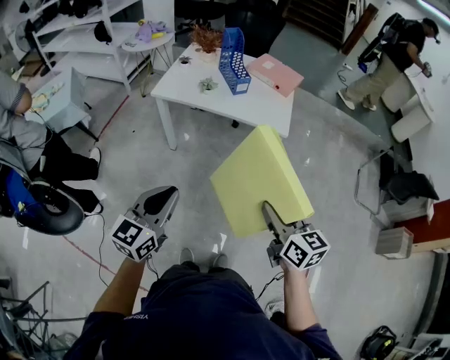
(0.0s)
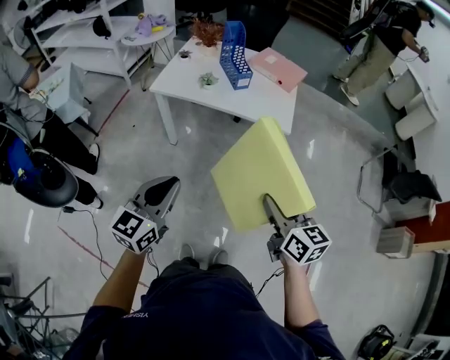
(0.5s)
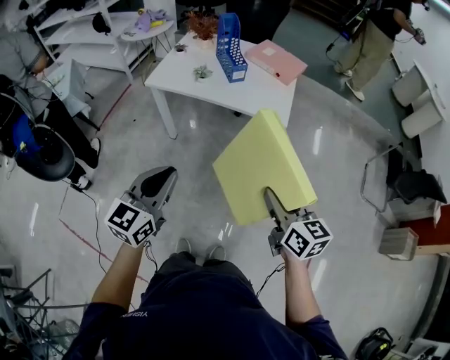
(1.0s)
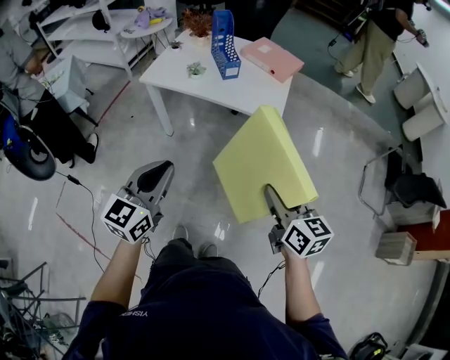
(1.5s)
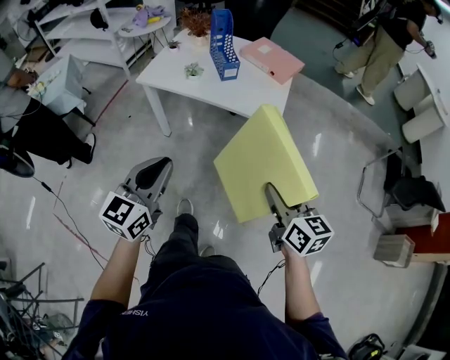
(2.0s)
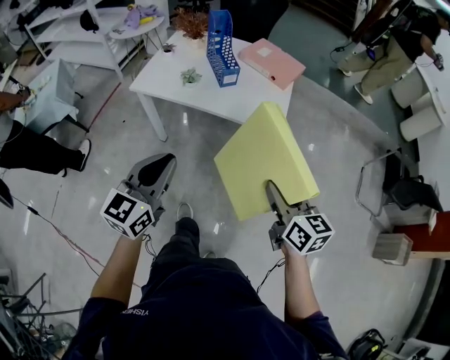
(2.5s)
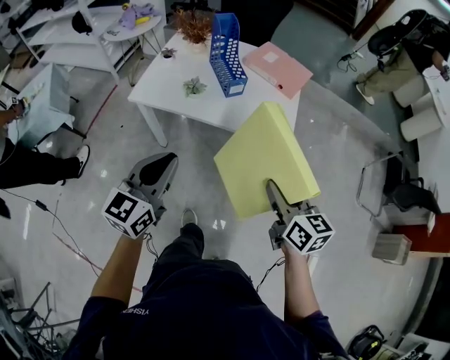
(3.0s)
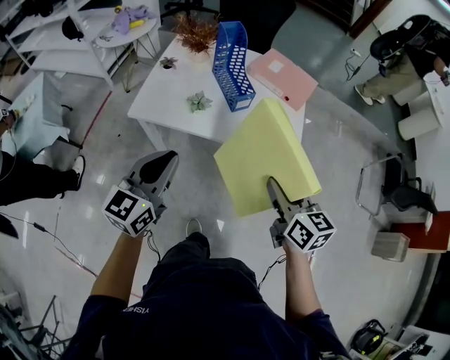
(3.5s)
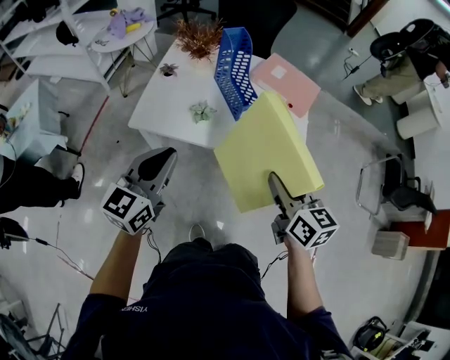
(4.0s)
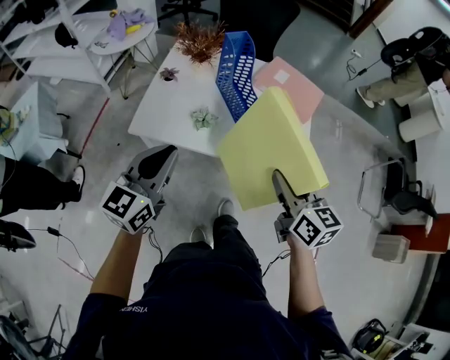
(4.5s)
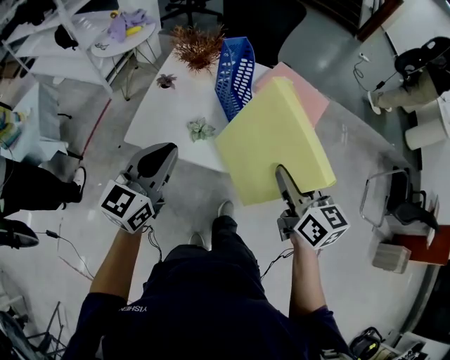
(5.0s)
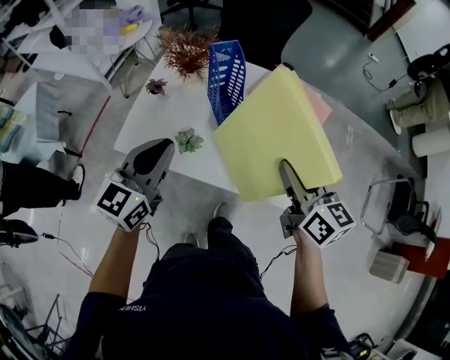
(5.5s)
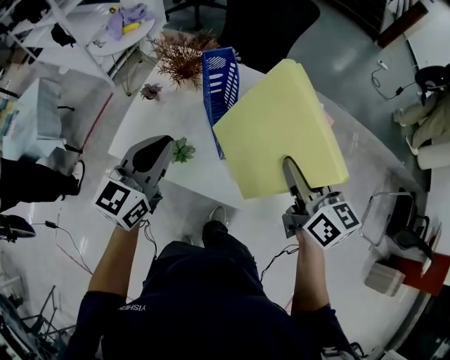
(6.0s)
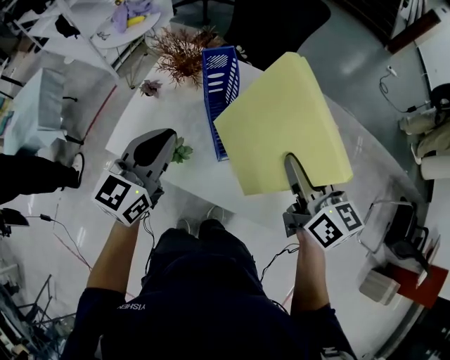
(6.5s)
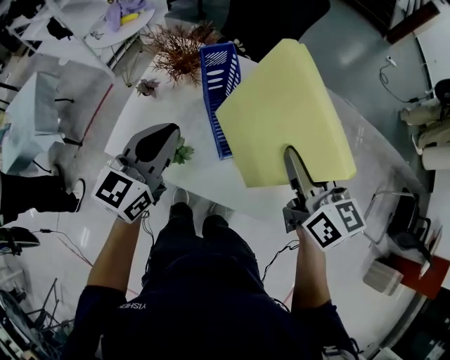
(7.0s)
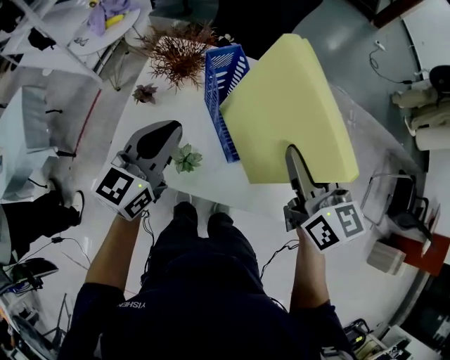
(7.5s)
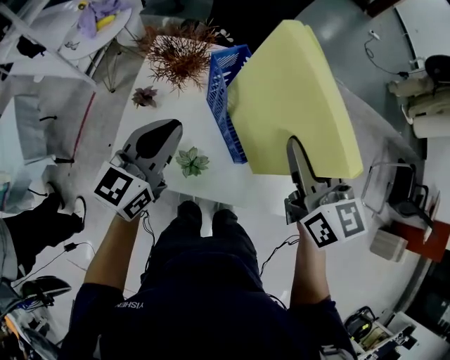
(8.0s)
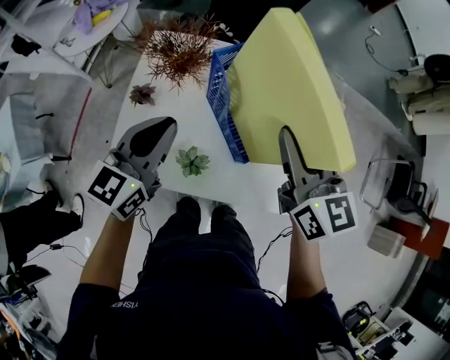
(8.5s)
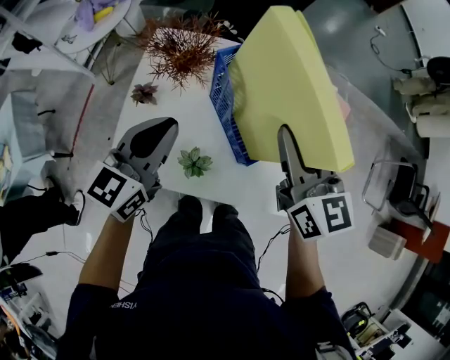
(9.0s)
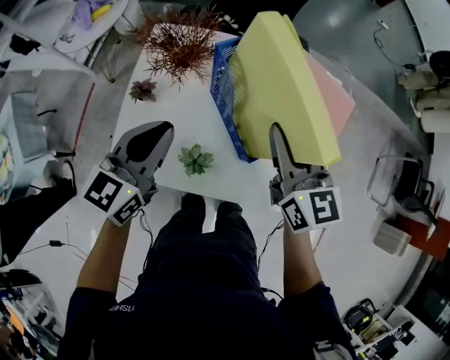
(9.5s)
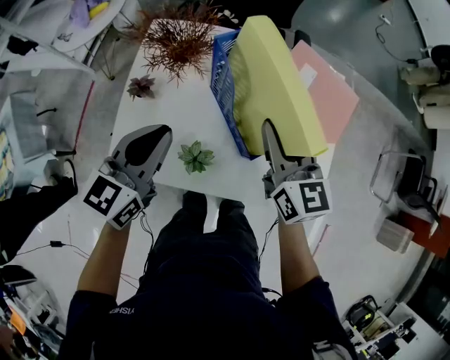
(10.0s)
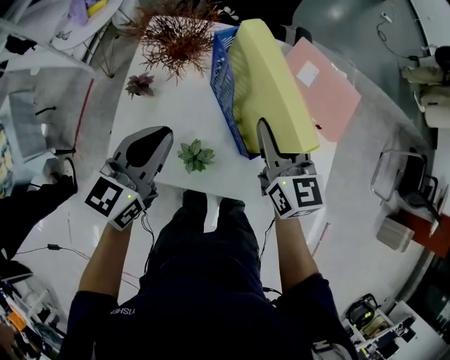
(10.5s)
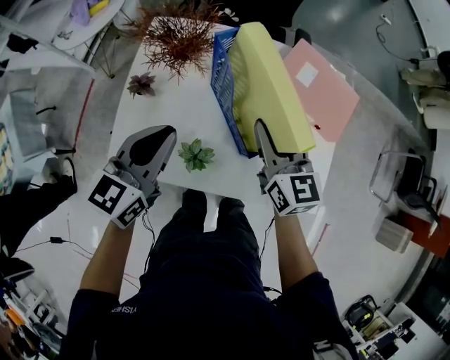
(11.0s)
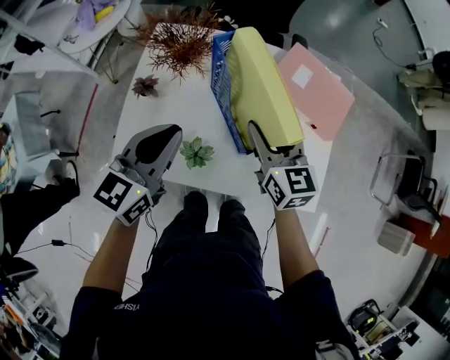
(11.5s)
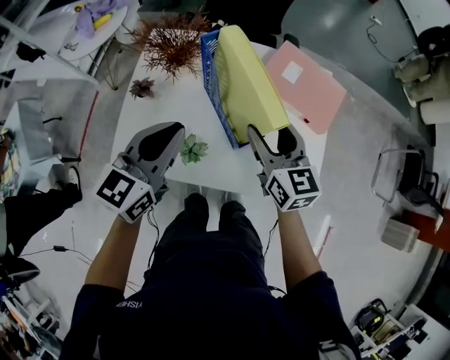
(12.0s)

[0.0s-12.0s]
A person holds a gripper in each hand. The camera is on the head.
0.0s to 2.0s: The two grippers go roughly 15 cm to the right and forward.
2.0s to 4.0s: Both grippers travel together forward and to the left, about 35 cm.
4.0s to 6.0s: Both grippers move forward, roughly 25 cm.
6.0s to 8.0s: The right gripper goes approximately 10 cm to the left and forward. Meanwhile the left gripper shifts approximately 10 cm forward.
8.0s to 10.0s: The right gripper travels downward by roughly 10 cm, while the left gripper shifts by approximately 5 cm.
10.0s to 12.0s: The right gripper opens up, while the left gripper travels to the right by approximately 5 cm.

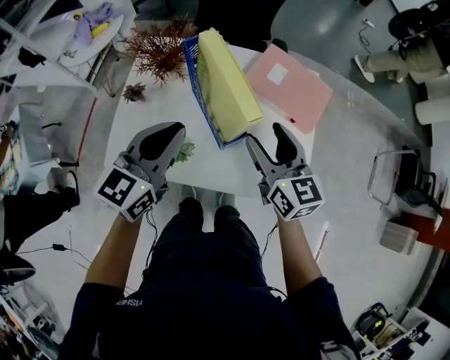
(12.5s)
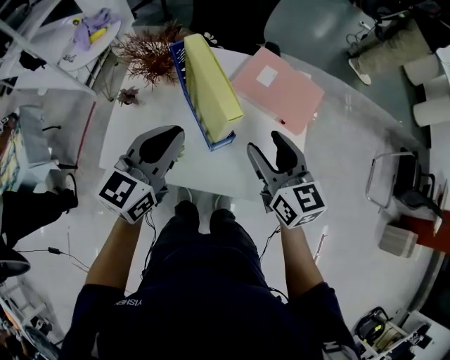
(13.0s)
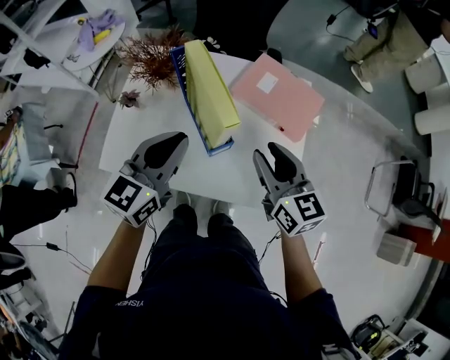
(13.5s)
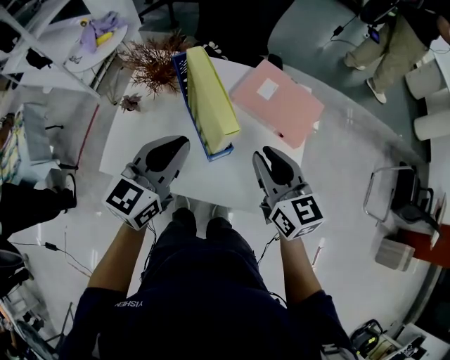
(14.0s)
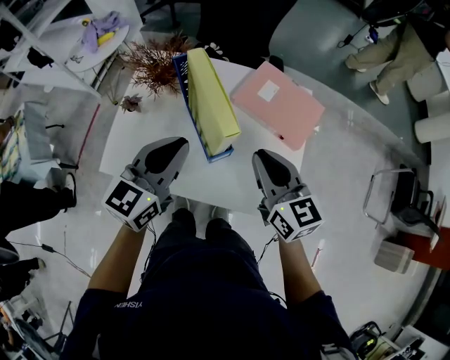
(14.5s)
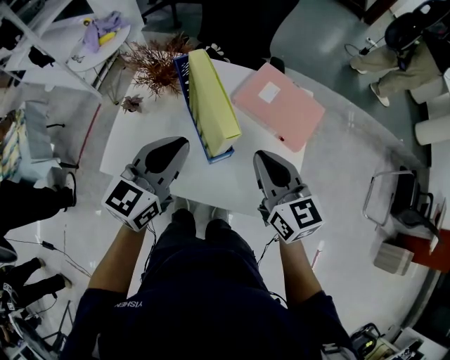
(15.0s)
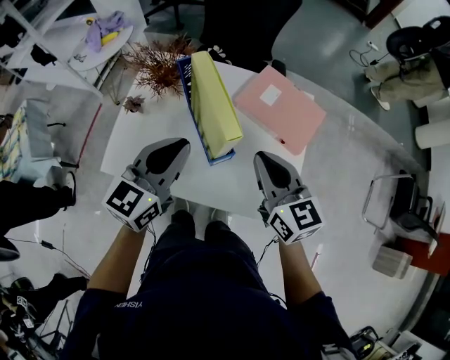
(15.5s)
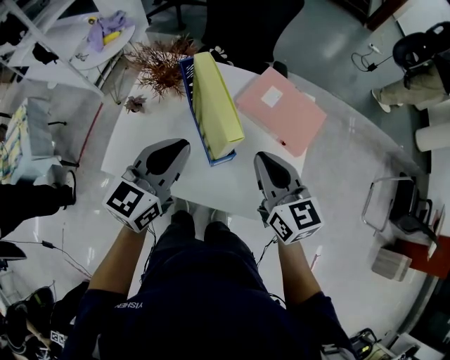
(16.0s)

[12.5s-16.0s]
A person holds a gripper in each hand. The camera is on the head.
12.5s to 14.5s: The right gripper closes.
14.5s to 16.0s: Both grippers stay about where they are.

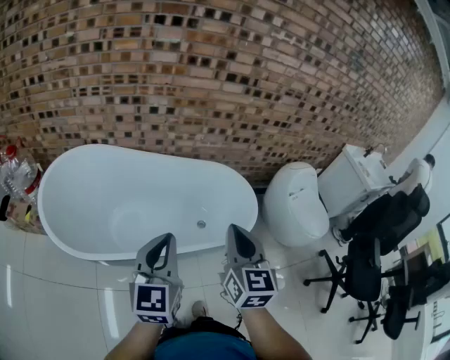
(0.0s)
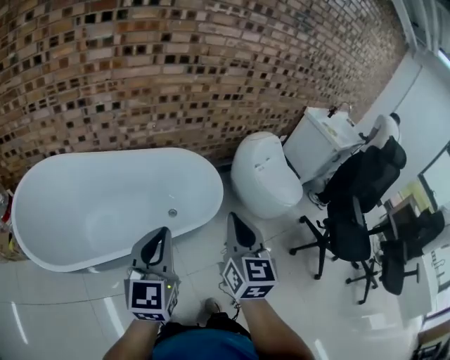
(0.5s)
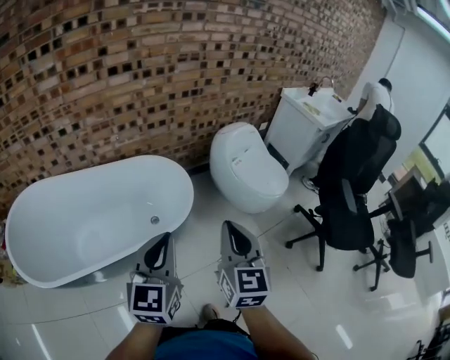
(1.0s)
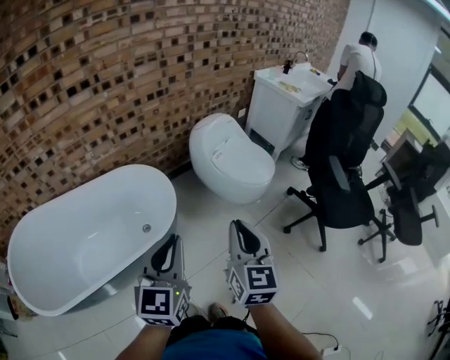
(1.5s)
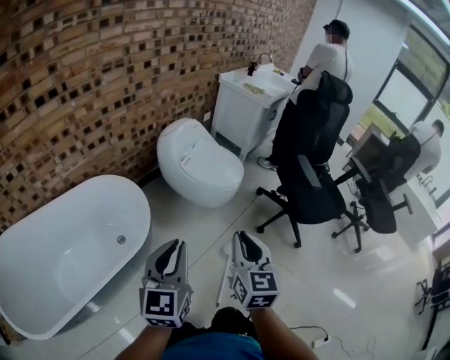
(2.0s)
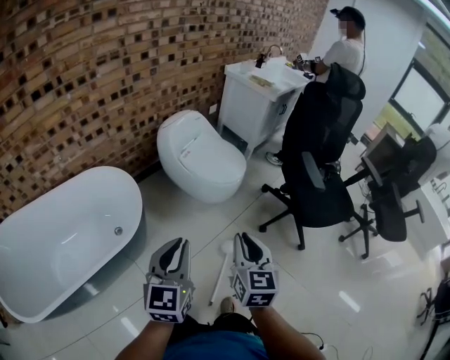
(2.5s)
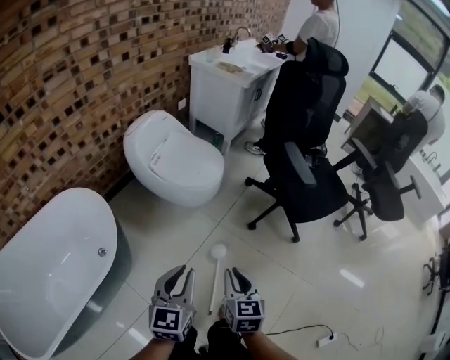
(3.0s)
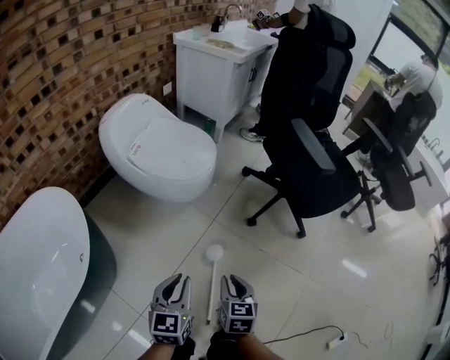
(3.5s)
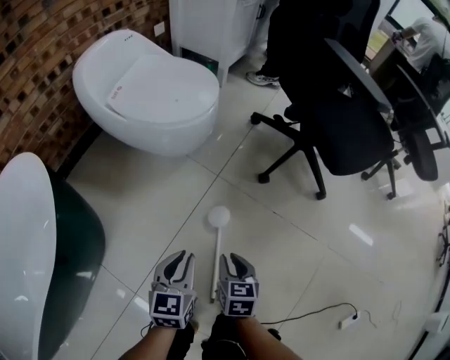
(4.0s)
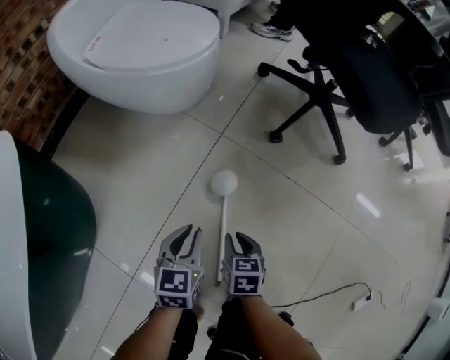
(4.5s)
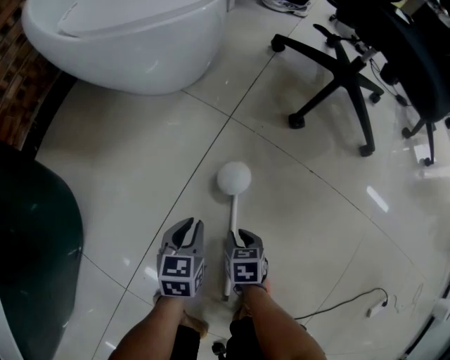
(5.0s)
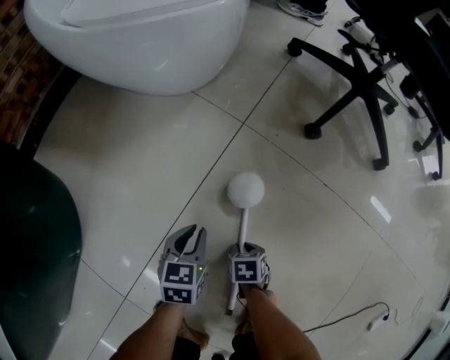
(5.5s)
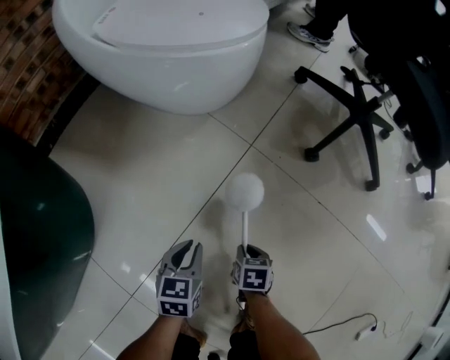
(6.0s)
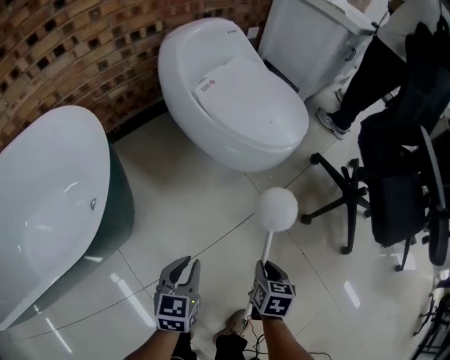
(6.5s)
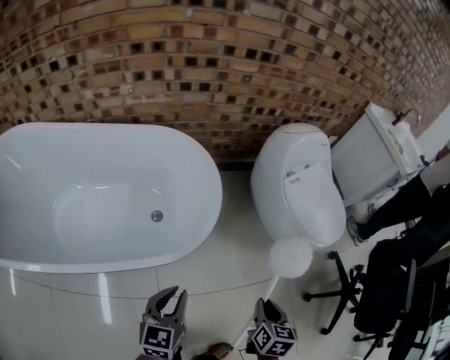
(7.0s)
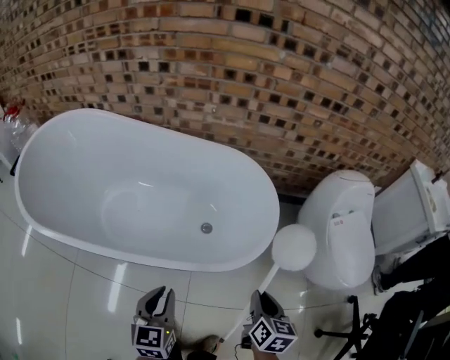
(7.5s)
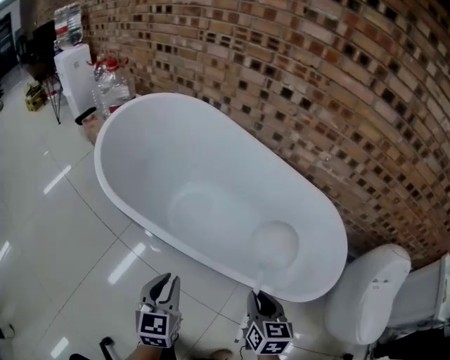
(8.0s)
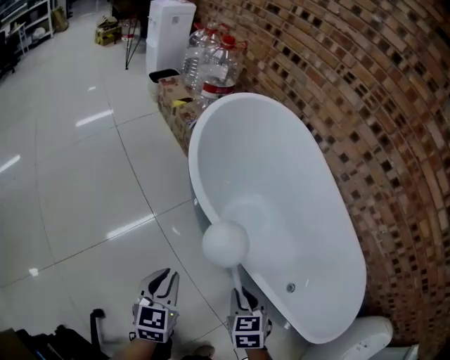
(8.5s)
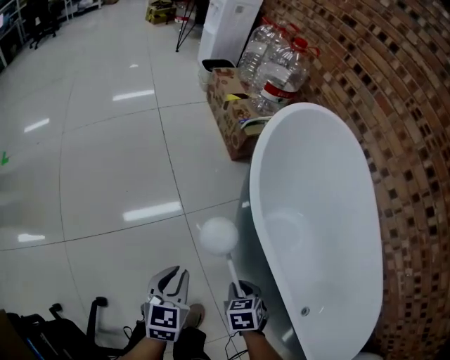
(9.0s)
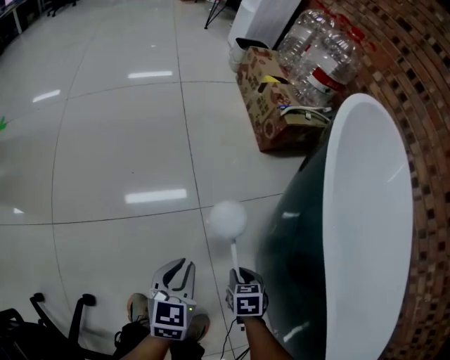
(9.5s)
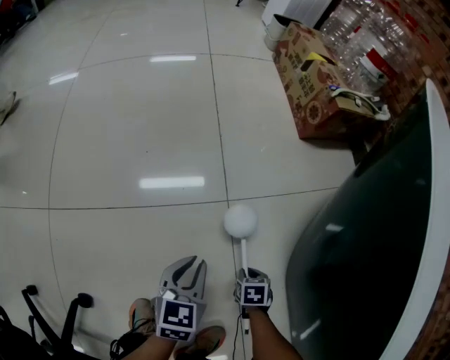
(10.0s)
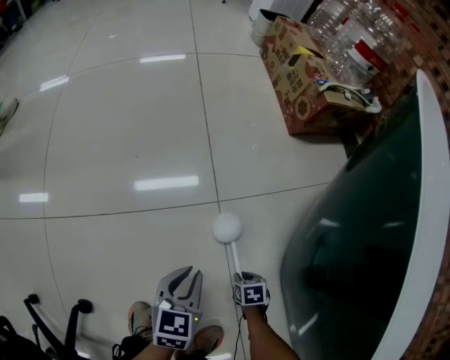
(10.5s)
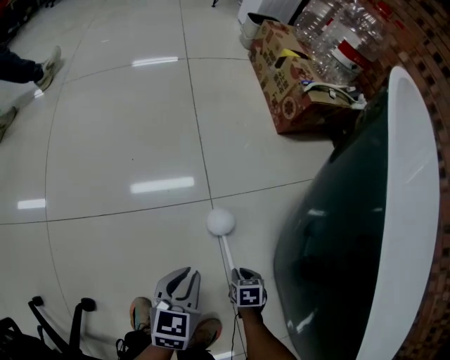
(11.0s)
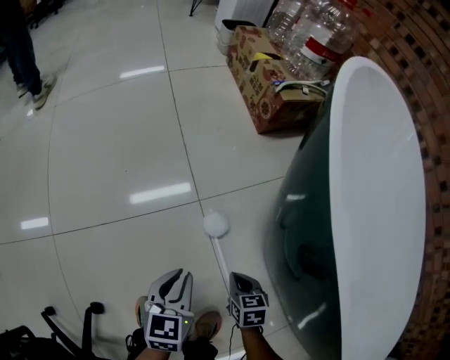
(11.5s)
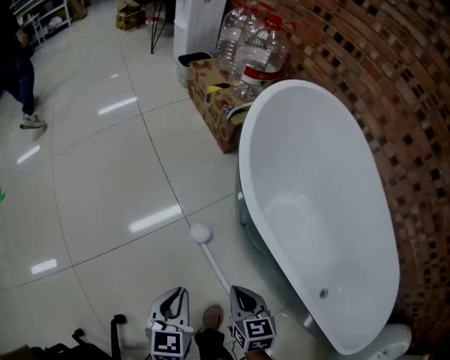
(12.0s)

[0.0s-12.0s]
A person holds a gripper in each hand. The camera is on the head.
0.0s to 2.0s: Both grippers are carried roughly 50 cm. The right gripper swivels some 40 degrees. Meanwhile the left gripper rotates about 40 degrees.
2.0s to 4.0s: The two grippers go approximately 60 cm downward. The right gripper points its fingers approximately 30 degrees further downward, while the left gripper swivels roughly 30 degrees.
4.0s to 6.0s: The grippers both shift downward by about 30 cm. The right gripper swivels roughly 20 degrees.
6.0s to 8.0s: The pair of grippers is taken roughly 70 cm. The right gripper points its fingers some 30 degrees further upward. Meanwhile the left gripper rotates some 90 degrees.
8.0s to 10.0s: Both grippers are carried about 50 cm. The two grippers go roughly 60 cm downward. The right gripper tips its fingers downward by roughly 40 degrees. The left gripper rotates about 40 degrees.
10.0s to 12.0s: Both grippers travel together upward, roughly 40 cm. The right gripper points its fingers some 30 degrees further upward.
